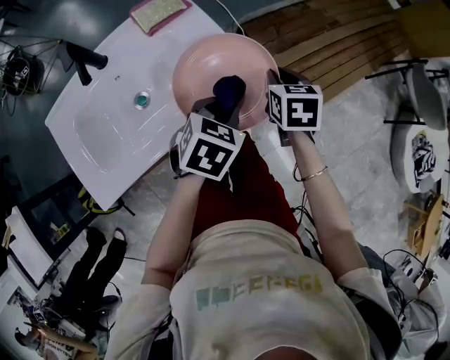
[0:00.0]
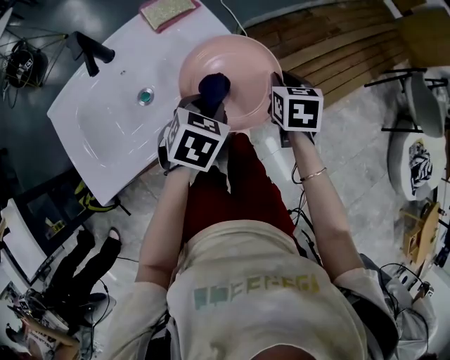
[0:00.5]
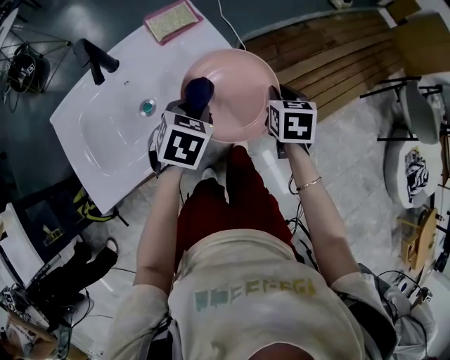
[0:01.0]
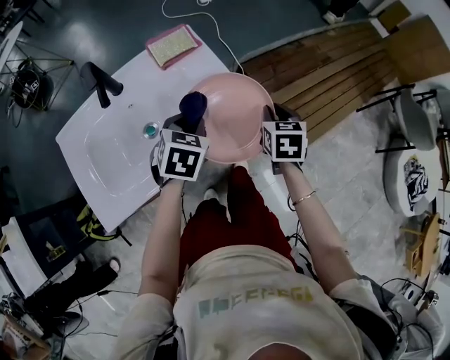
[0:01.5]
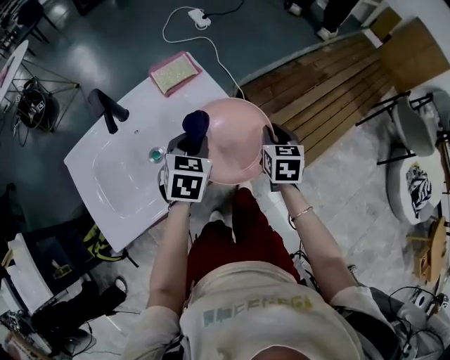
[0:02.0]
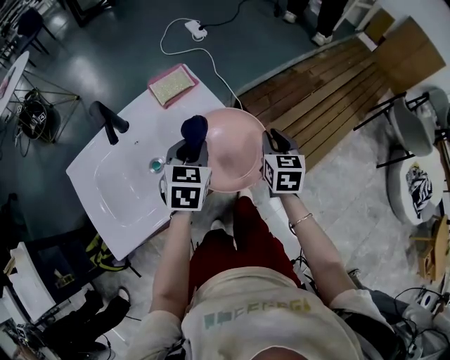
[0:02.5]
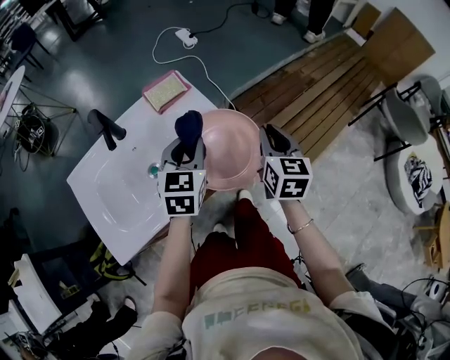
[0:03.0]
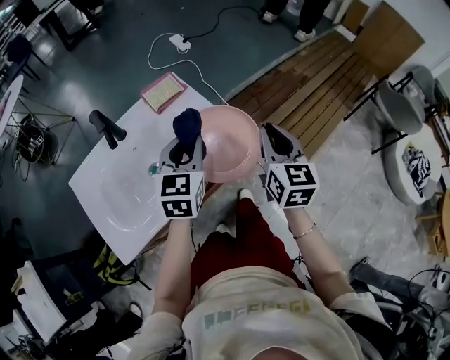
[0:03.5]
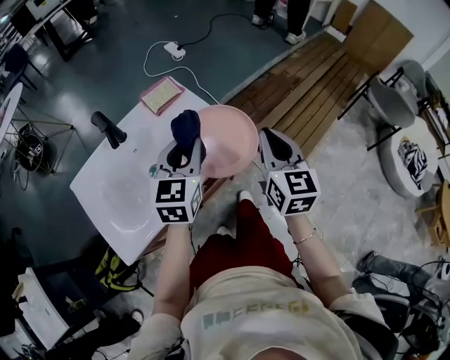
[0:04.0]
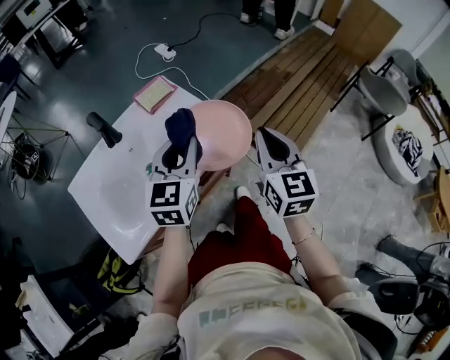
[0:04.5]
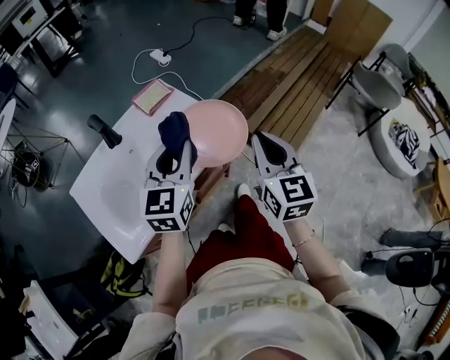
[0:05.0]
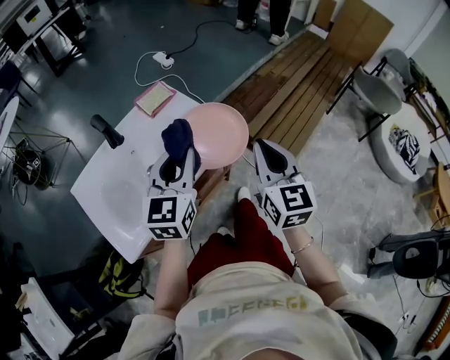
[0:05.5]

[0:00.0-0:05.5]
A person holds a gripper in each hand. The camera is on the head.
0:00.0 to 0:02.0: The left gripper shifts some 10 cm to the left and forward.
0:02.0 to 0:03.5: The right gripper heads upward and backward, covering roughly 15 cm, and rotates approximately 20 degrees, while the left gripper heads upward, covering about 10 cm, and rotates some 20 degrees.
0:03.5 to 0:05.5: The left gripper goes roughly 10 cm backward and upward. Meanwhile the right gripper heads backward, covering some 15 cm.

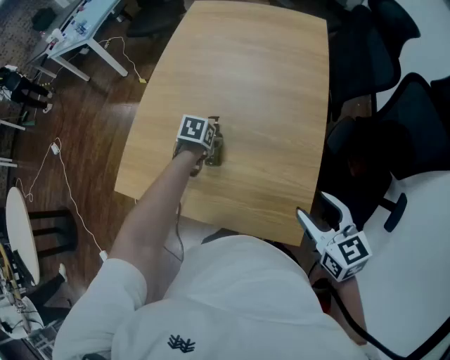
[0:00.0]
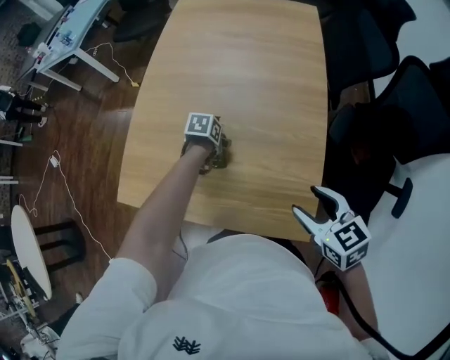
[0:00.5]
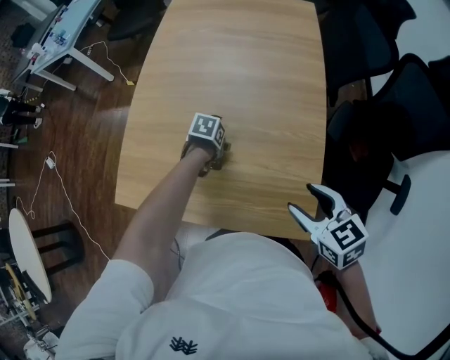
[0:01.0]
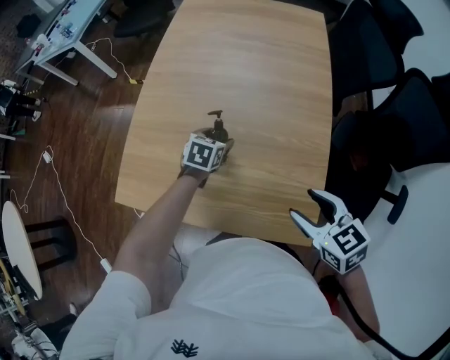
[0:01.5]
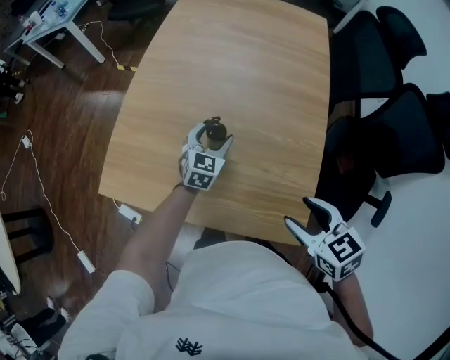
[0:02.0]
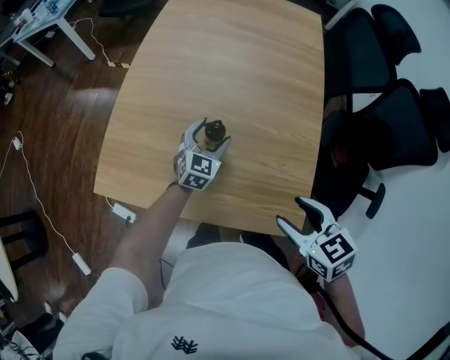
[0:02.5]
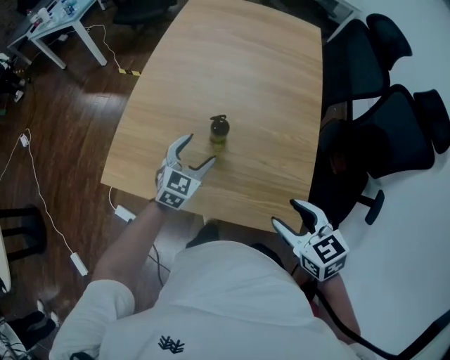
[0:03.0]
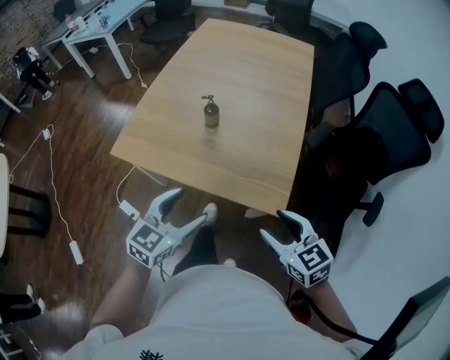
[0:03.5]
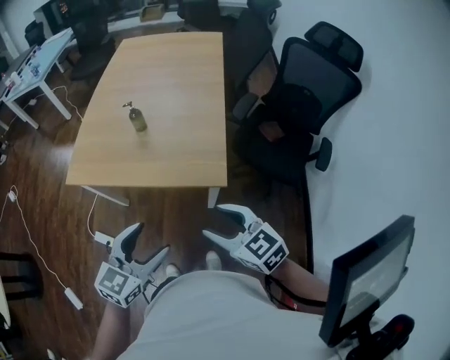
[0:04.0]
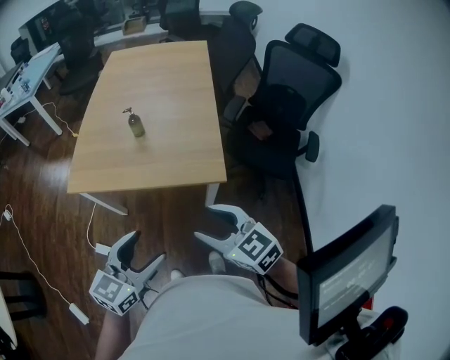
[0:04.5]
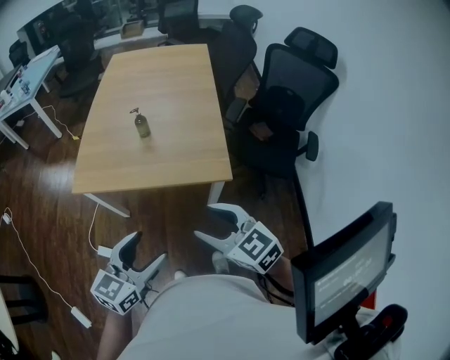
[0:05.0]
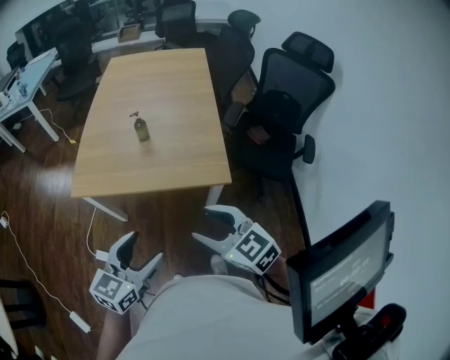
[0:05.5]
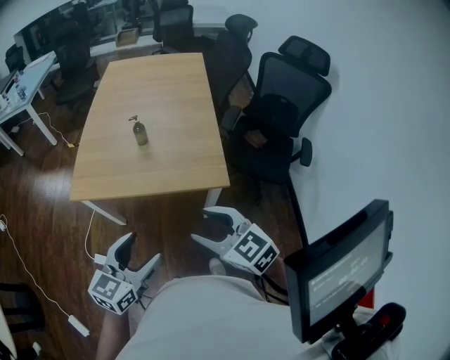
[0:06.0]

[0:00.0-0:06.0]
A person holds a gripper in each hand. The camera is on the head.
0:00.0 to 0:02.0: The left gripper changes place by approximately 5 cm, and angles its fingers upward, by approximately 40 degrees.
0:02.0 to 0:04.0: The left gripper goes approximately 50 cm backward, while the right gripper moves backward, about 25 cm, and swivels some 20 degrees.
0:04.0 to 0:06.0: The two grippers go some 10 cm to the left.

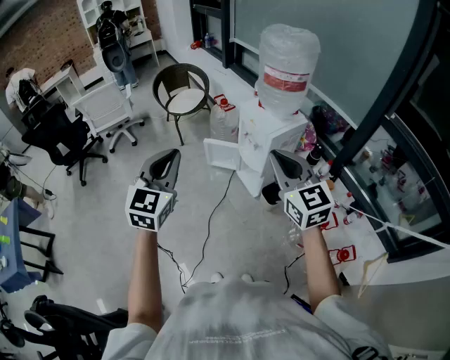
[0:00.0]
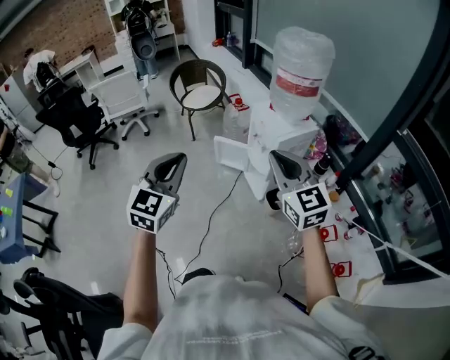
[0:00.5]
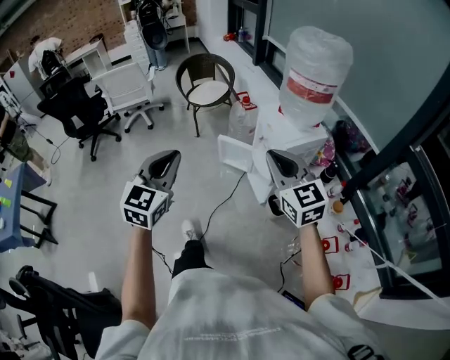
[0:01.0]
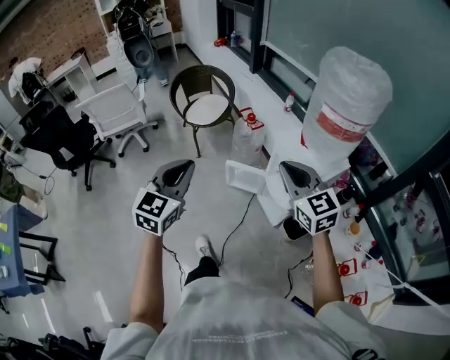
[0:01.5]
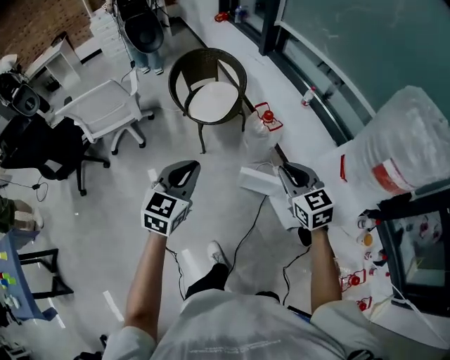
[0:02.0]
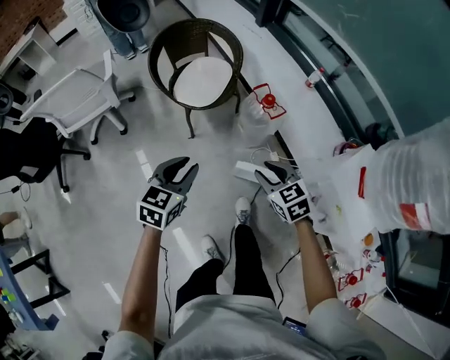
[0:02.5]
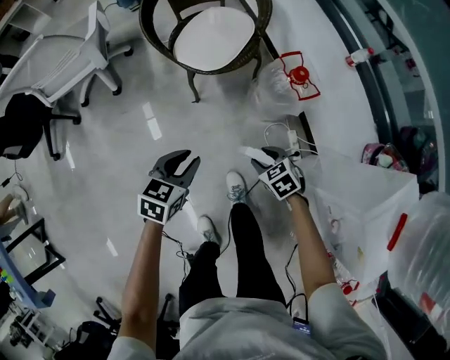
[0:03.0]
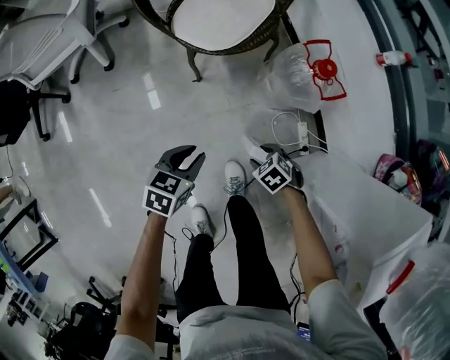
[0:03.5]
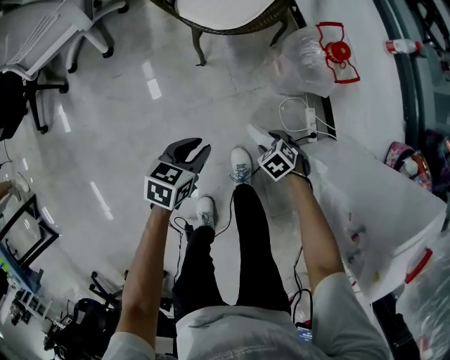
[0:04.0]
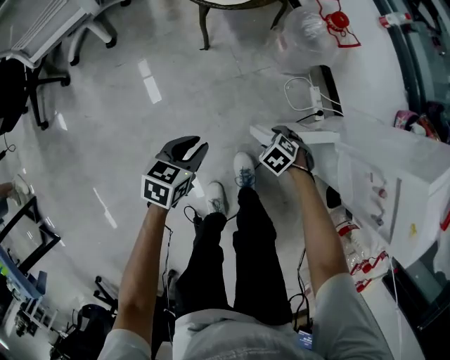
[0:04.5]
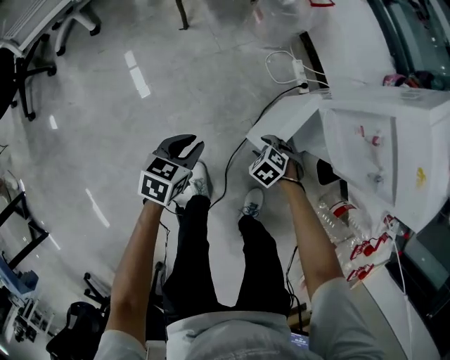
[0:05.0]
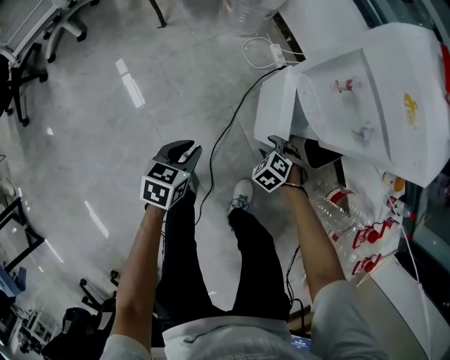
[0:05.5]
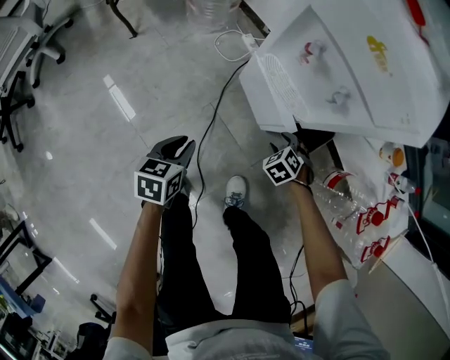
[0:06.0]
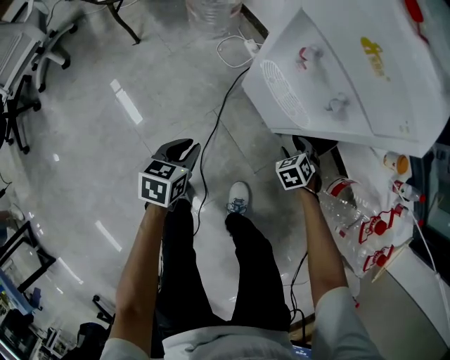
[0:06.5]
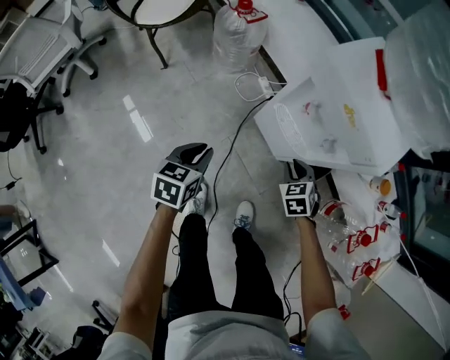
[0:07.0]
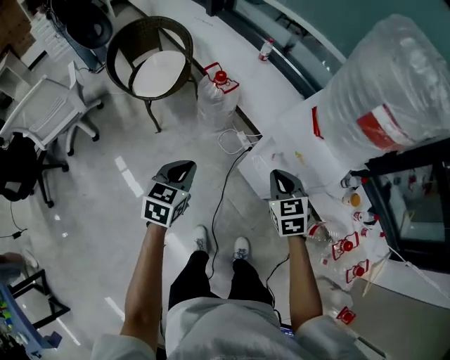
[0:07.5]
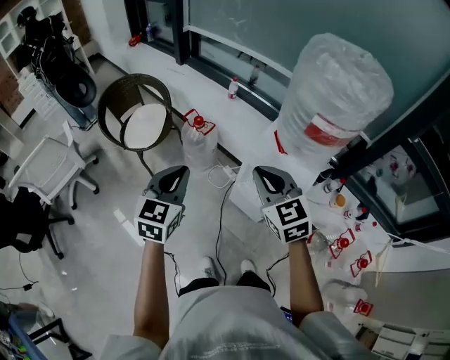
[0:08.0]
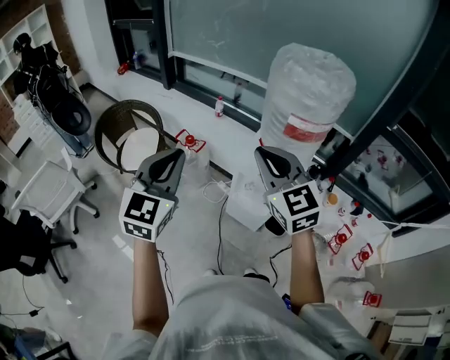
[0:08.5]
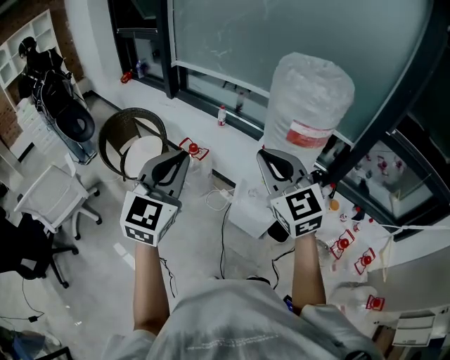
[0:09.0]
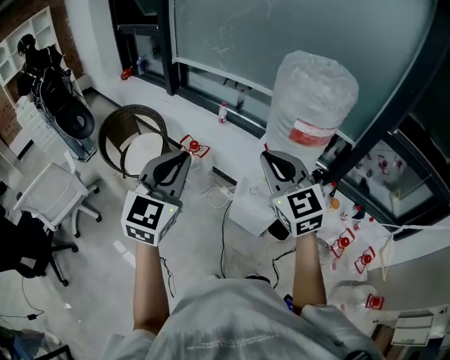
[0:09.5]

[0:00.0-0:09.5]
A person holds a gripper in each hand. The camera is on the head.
0:00.0 to 0:02.0: Both grippers are carried forward, roughly 50 cm. The right gripper changes its angle by some 20 degrees.
0:02.0 to 0:04.0: The grippers both shift downward by about 60 cm. The left gripper changes its angle by approximately 40 degrees, and opens up; the right gripper points its fingers approximately 50 degrees further downward, and opens.
0:04.0 to 0:05.5: The right gripper shifts by about 40 cm; the left gripper changes place by some 40 cm.
0:05.5 to 0:07.5: Both grippers travel together upward, about 40 cm. The left gripper changes its angle by roughly 20 degrees, while the right gripper tilts its fingers about 40 degrees upward, and closes.
0:07.5 to 0:09.5: The grippers both shift upward by approximately 35 cm. The left gripper angles its fingers upward, by about 30 degrees. Meanwhile the right gripper angles its fingers upward, by roughly 30 degrees.

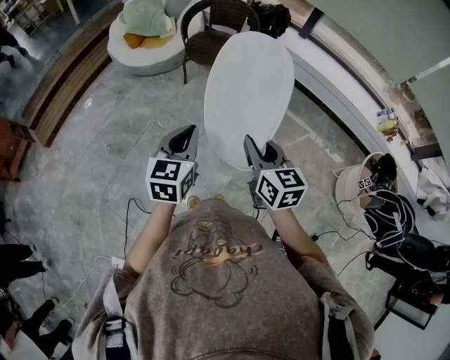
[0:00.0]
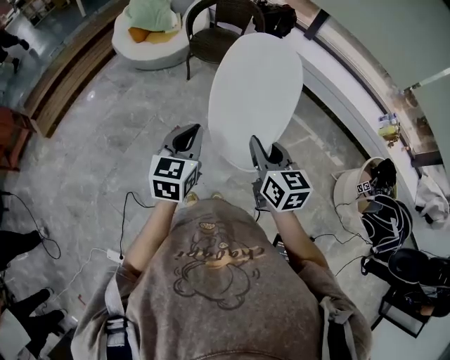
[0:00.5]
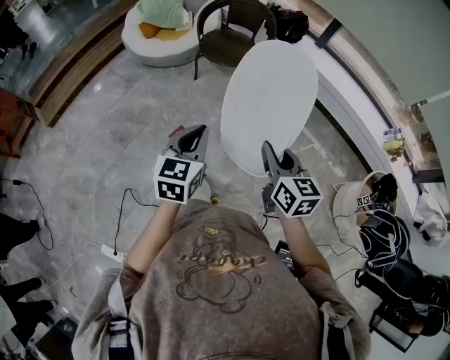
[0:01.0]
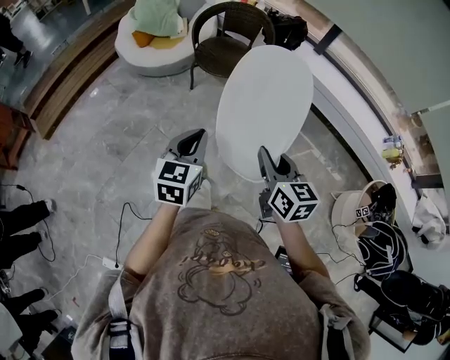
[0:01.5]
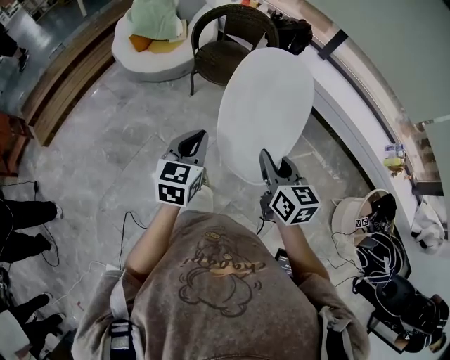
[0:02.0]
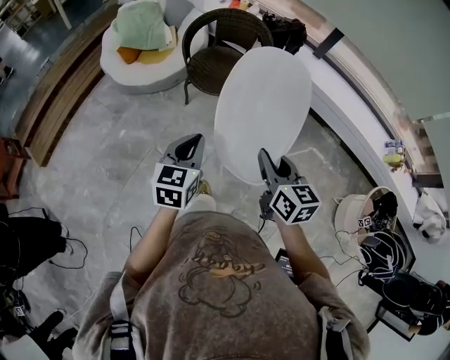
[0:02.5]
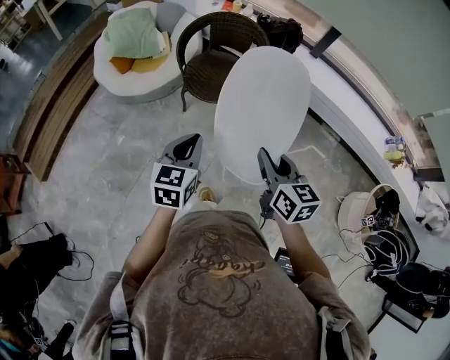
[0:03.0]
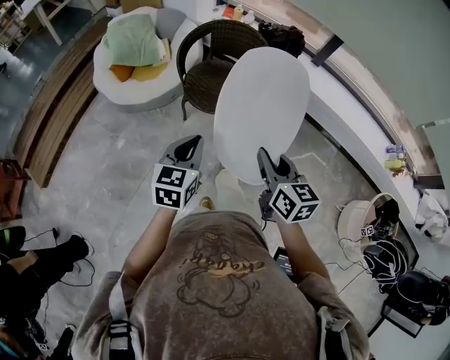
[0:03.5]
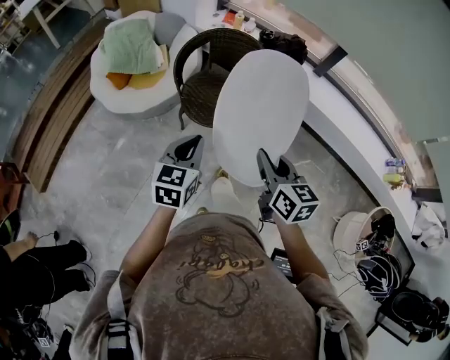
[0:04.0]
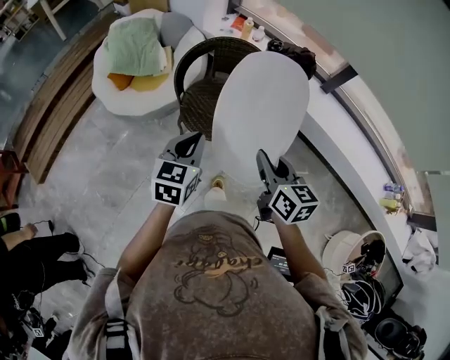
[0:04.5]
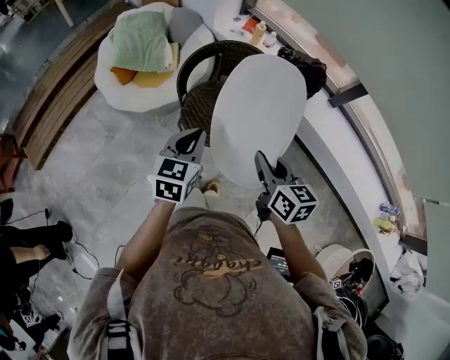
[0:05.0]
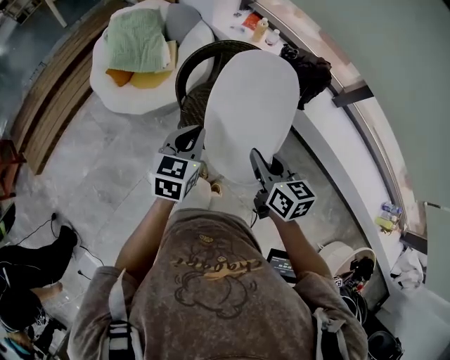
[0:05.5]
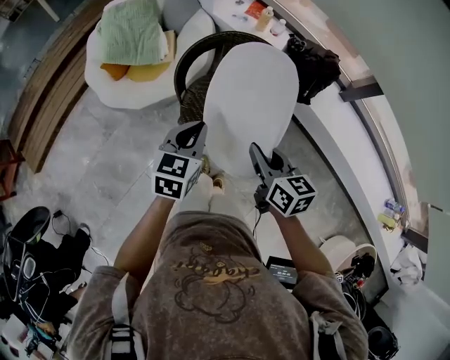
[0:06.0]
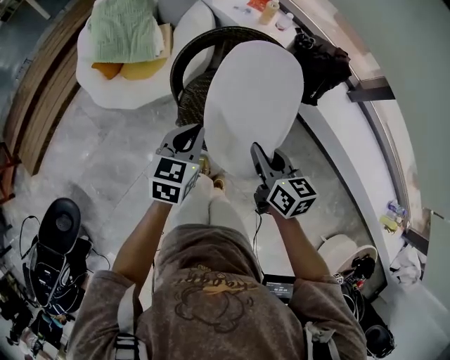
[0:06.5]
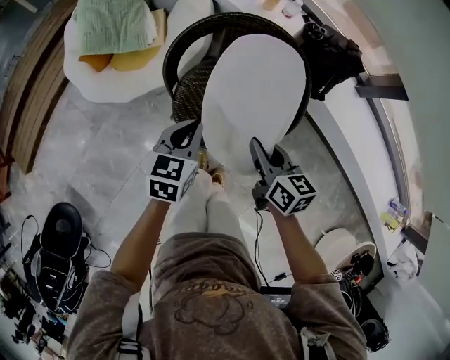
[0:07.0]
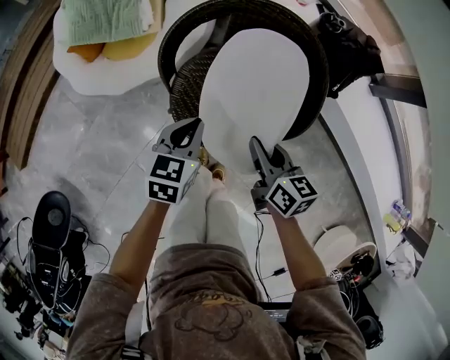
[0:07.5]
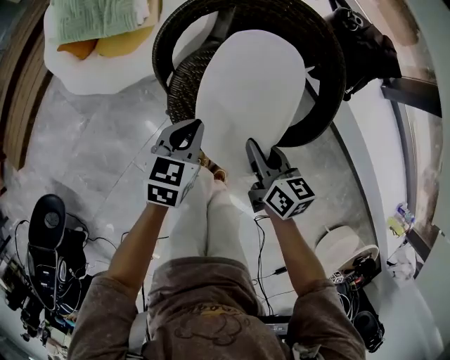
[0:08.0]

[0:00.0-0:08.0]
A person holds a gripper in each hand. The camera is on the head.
0:00.0 to 0:02.0: The grippers both shift forward by about 15 cm.
0:02.0 to 0:04.0: Both grippers move forward, about 30 cm.
0:04.0 to 0:06.0: Both grippers move forward, roughly 25 cm.
0:06.0 to 0:08.0: Both grippers travel together downward, approximately 25 cm.
